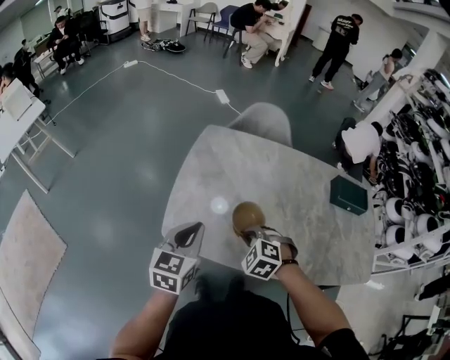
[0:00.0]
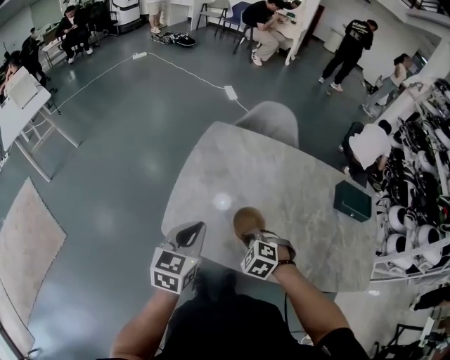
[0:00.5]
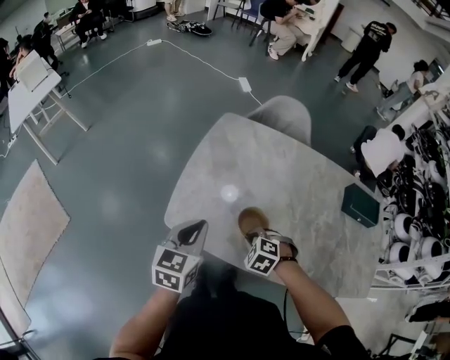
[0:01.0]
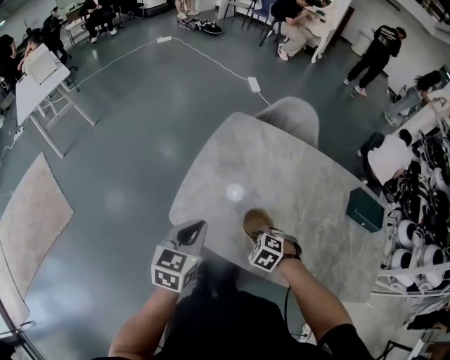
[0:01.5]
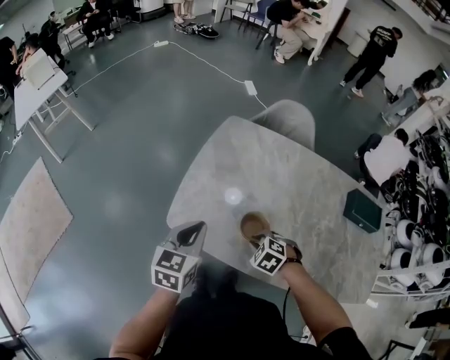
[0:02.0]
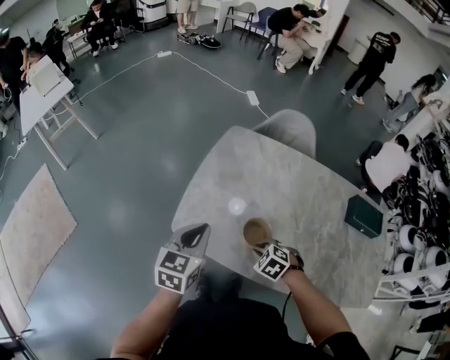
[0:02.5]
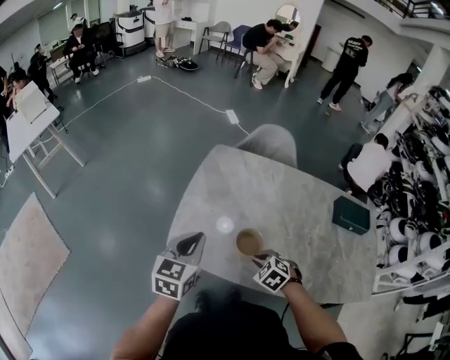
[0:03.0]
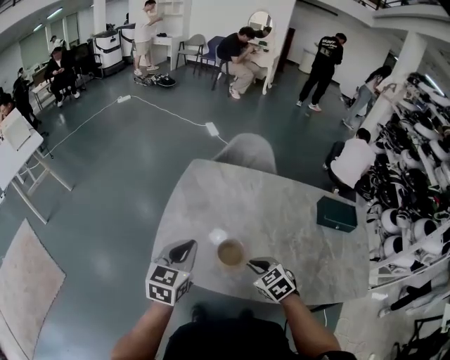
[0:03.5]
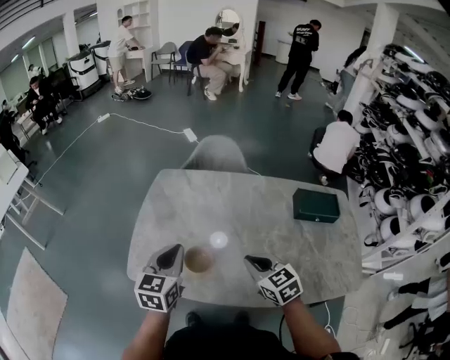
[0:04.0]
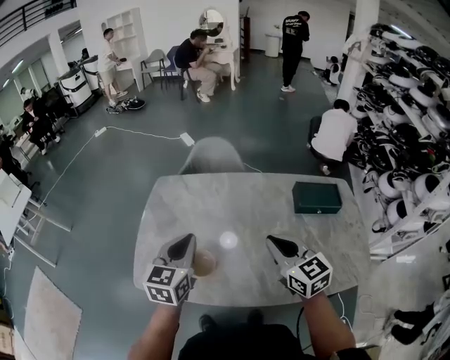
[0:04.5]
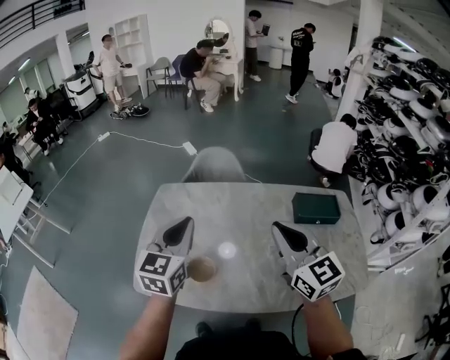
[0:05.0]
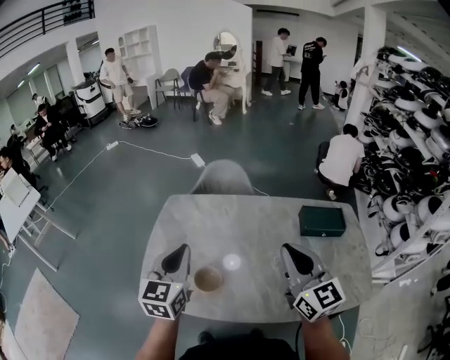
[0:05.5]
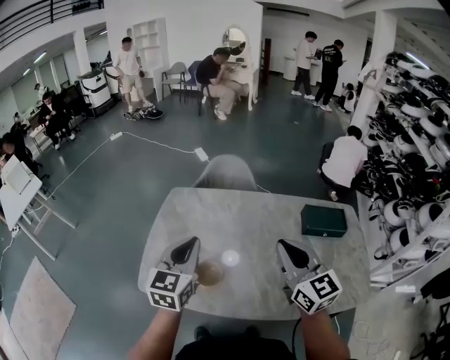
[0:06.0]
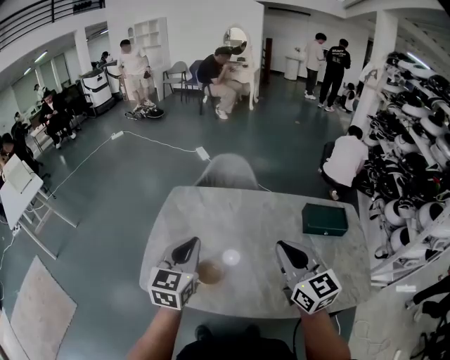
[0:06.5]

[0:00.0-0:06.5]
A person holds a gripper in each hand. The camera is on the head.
0:00.0 to 0:02.0: The right gripper goes approximately 10 cm downward.
0:02.0 to 0:04.5: The right gripper goes about 40 cm upward and to the right, and angles its fingers upward, by approximately 60 degrees. Meanwhile the left gripper goes some 25 cm to the right and upward.
0:04.5 to 0:06.5: The right gripper moves upward, about 10 cm.

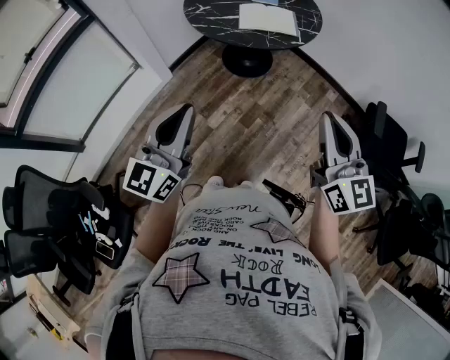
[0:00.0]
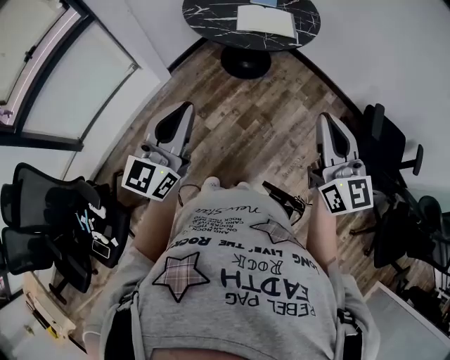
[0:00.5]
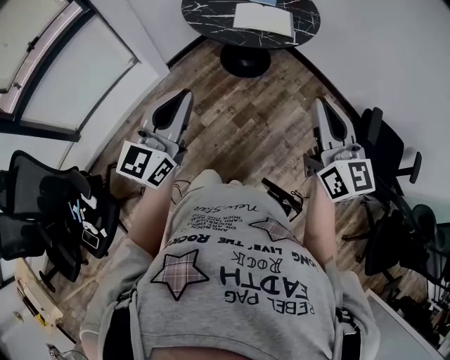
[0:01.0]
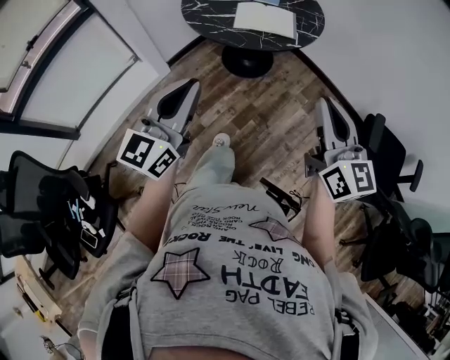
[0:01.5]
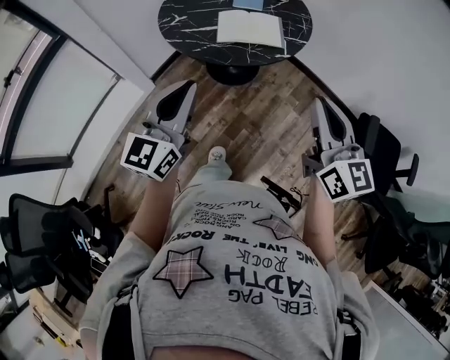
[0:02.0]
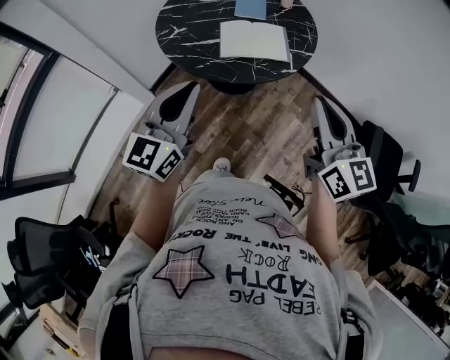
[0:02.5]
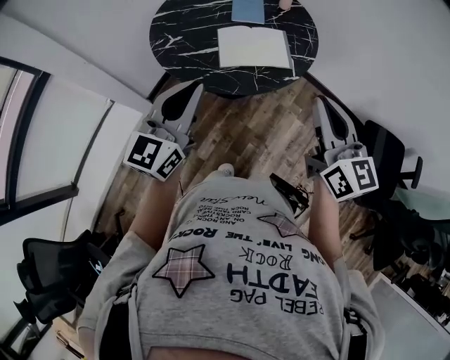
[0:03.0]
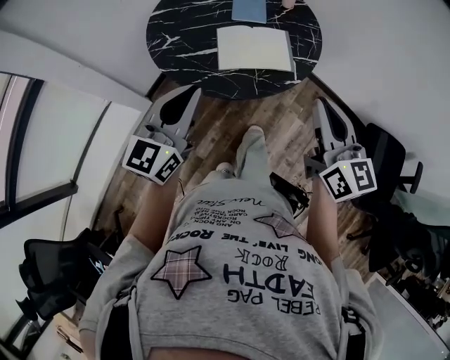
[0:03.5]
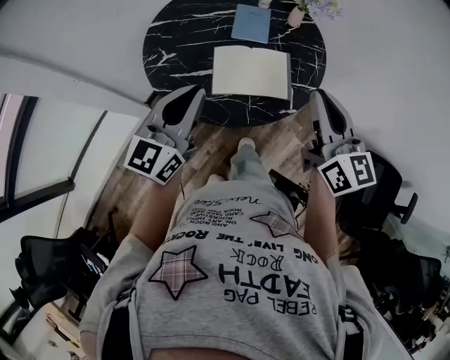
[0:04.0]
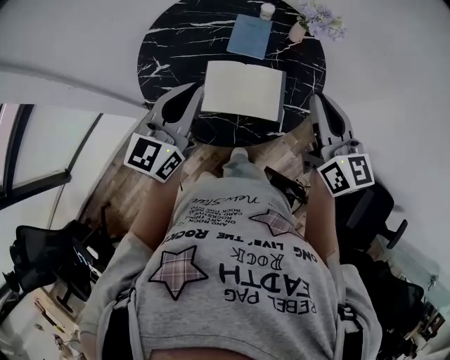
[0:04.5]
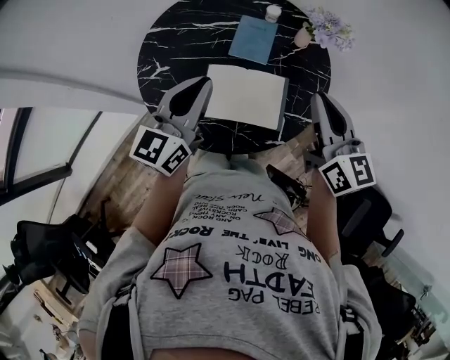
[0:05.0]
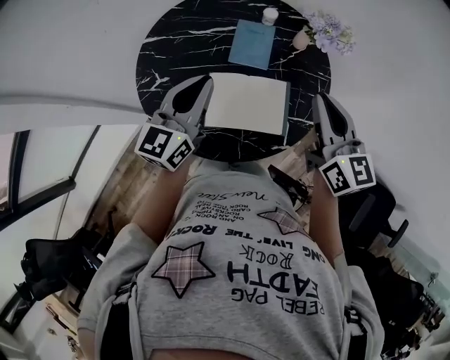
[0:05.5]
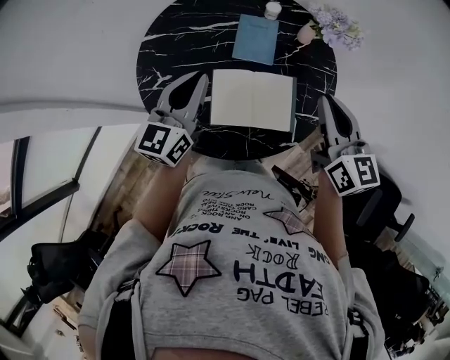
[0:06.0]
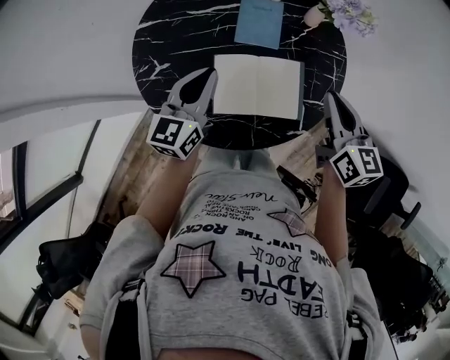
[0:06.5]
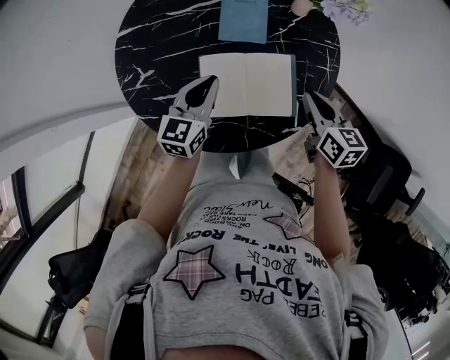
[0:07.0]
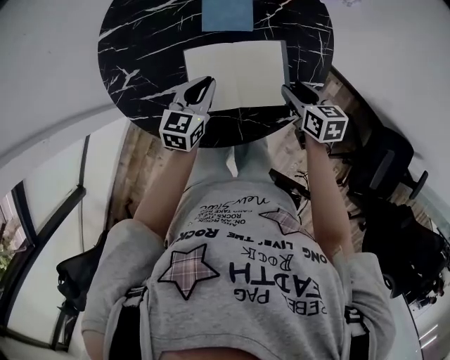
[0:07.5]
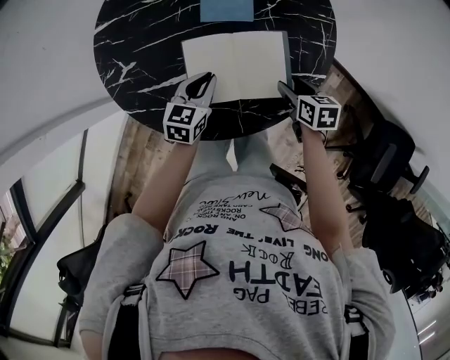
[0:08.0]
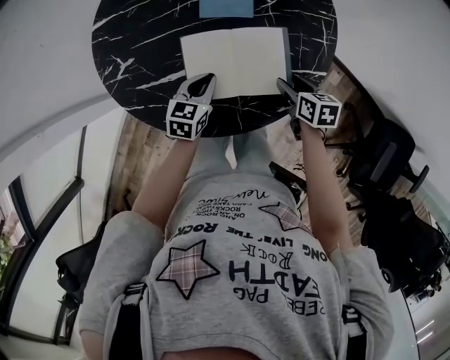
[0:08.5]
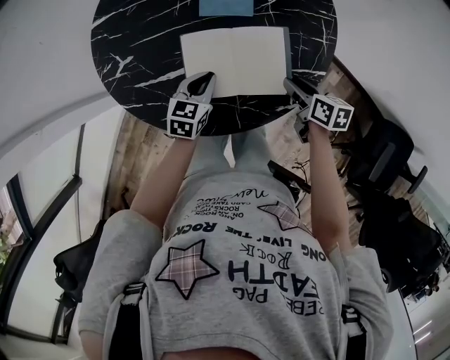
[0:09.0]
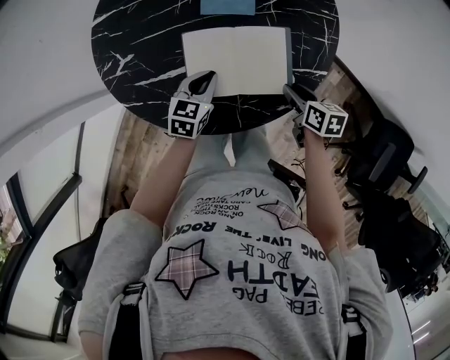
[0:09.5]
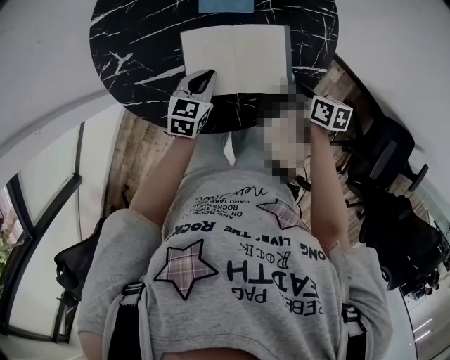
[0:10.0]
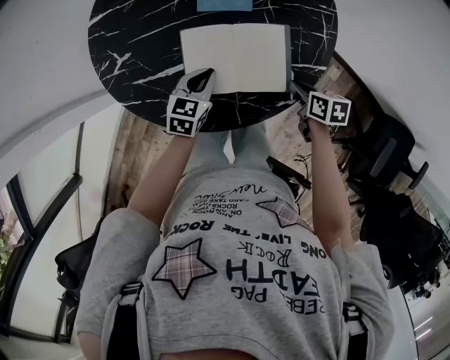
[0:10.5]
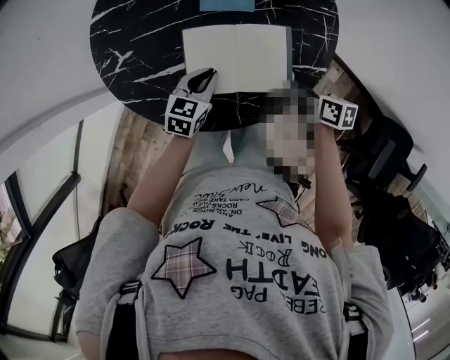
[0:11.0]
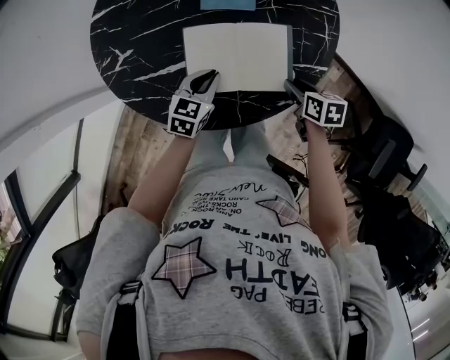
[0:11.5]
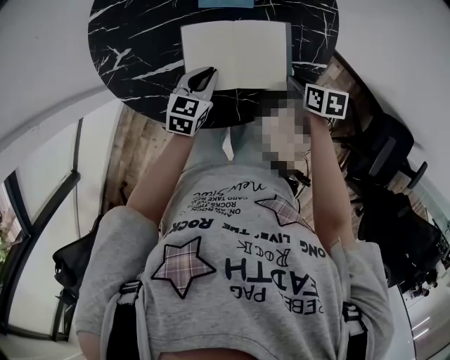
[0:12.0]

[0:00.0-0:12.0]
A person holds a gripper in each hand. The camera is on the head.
0:00.0 to 0:02.0: The left gripper moves forward and to the right, approximately 20 cm, while the right gripper shifts about 20 cm forward.
0:02.0 to 0:04.0: The two grippers go roughly 30 cm forward.
0:04.0 to 0:06.0: Both grippers move forward, about 20 cm.
0:06.0 to 0:08.0: The grippers both shift downward by approximately 30 cm. The right gripper tips its fingers downward by approximately 40 degrees, and opens. Meanwhile the left gripper angles its fingers downward, by some 30 degrees.
0:08.0 to 0:10.0: The grippers stay close to where they were, moving slightly.
0:10.0 to 0:12.0: The right gripper closes up.

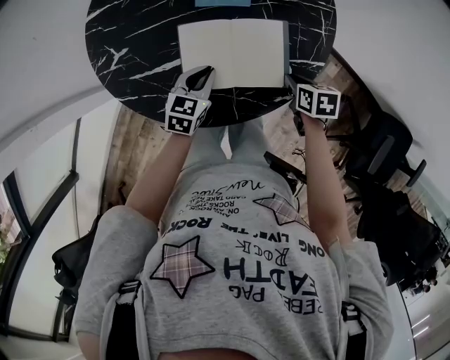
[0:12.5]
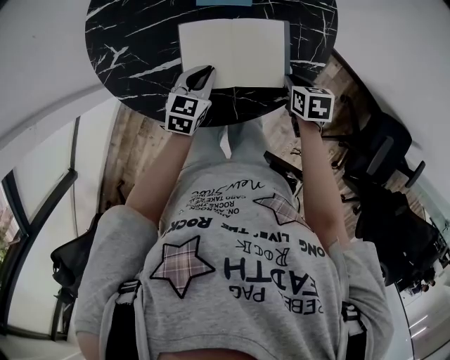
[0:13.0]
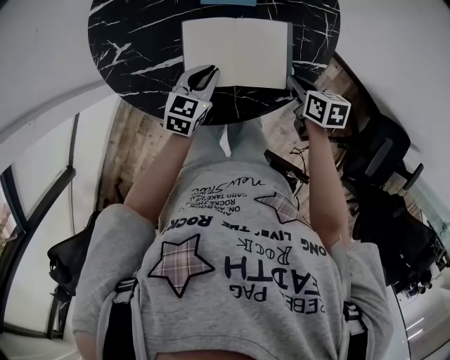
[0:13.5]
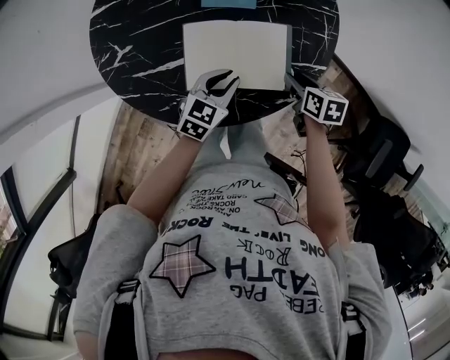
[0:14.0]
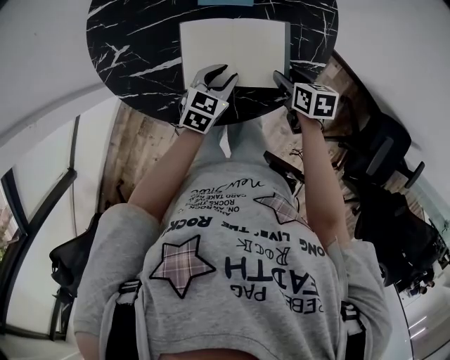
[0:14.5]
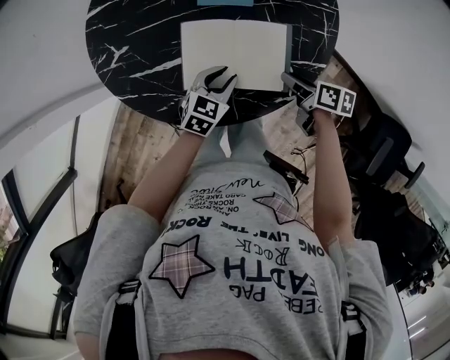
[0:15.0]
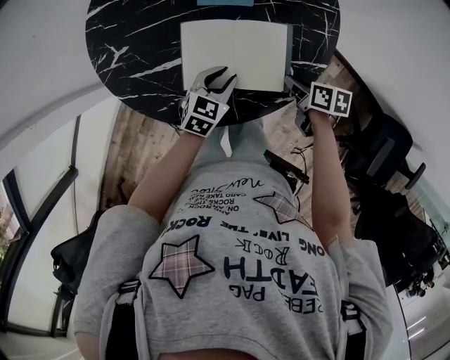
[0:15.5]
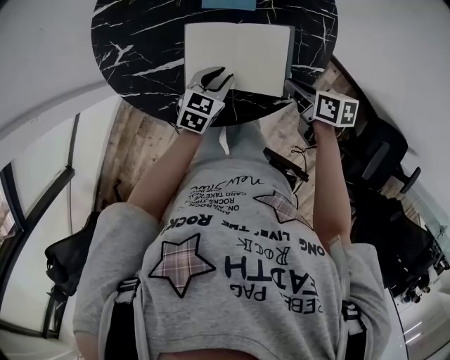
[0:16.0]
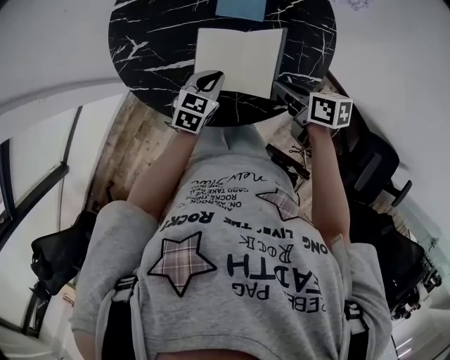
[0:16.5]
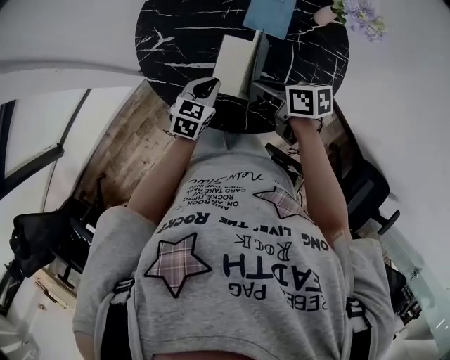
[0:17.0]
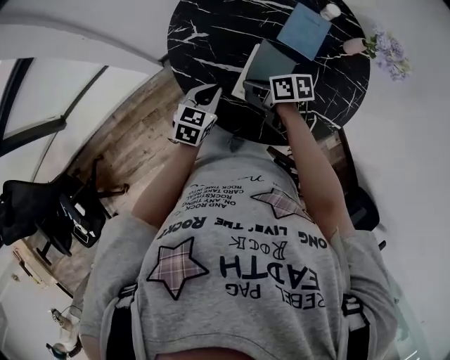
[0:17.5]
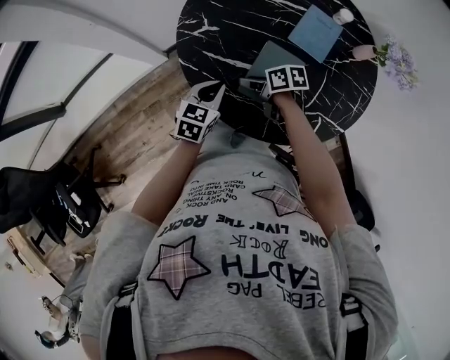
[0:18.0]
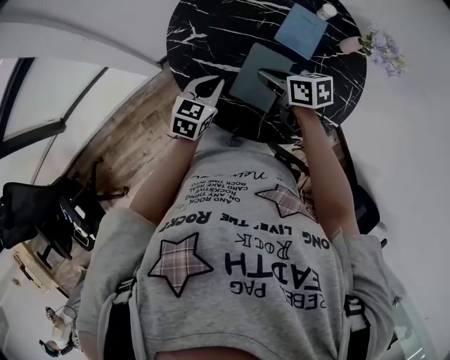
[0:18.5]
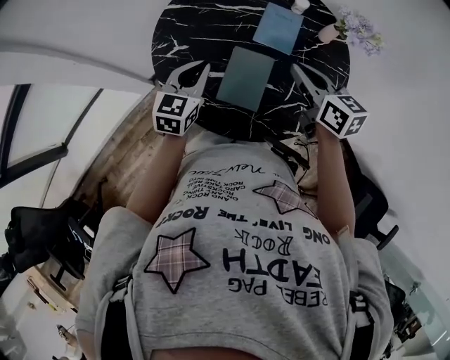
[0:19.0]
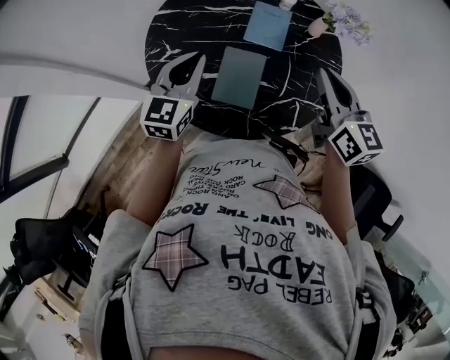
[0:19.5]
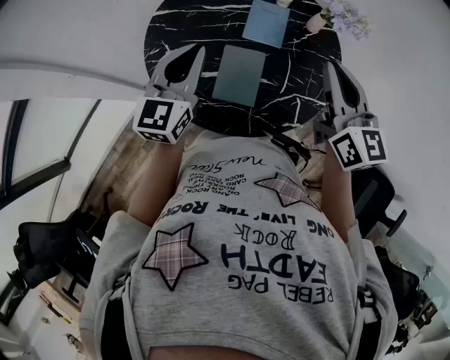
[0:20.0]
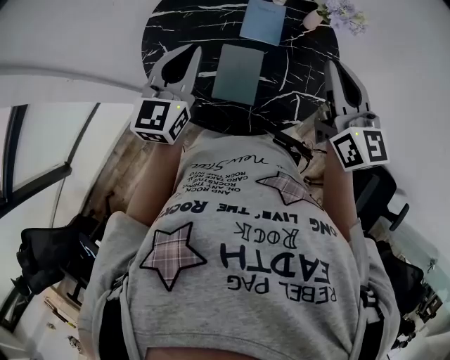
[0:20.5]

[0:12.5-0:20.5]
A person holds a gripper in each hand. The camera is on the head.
0:12.5 to 0:14.5: The right gripper opens; the left gripper shifts about 5 cm to the right, and opens its fingers.
0:14.5 to 0:16.5: The left gripper goes approximately 5 cm to the left, and closes; the right gripper is displaced upward and to the left by some 15 cm, swivels some 20 degrees, and closes.
0:16.5 to 0:18.5: The right gripper reaches approximately 10 cm downward, then returns, turns by some 30 degrees, and opens, then closes again. Meanwhile the left gripper ends up about 15 cm from where it was, and changes its angle by approximately 20 degrees.
0:18.5 to 0:20.5: The two grippers go about 25 cm upward. The left gripper turns by some 30 degrees; the right gripper points its fingers some 30 degrees further upward.
